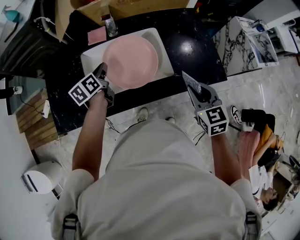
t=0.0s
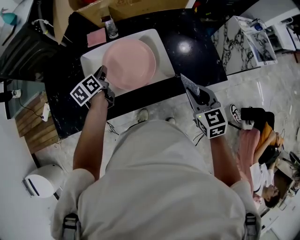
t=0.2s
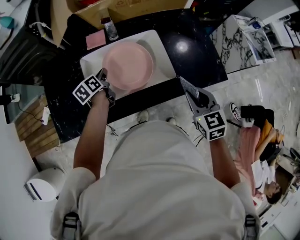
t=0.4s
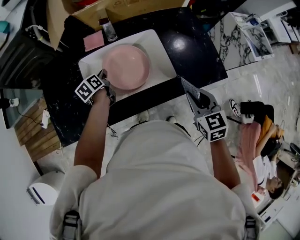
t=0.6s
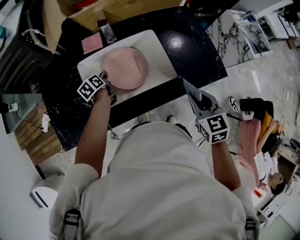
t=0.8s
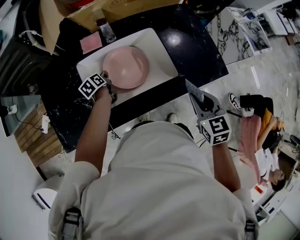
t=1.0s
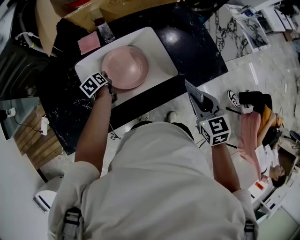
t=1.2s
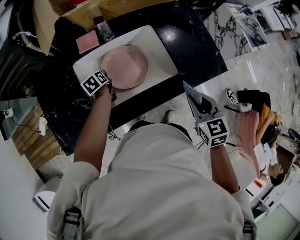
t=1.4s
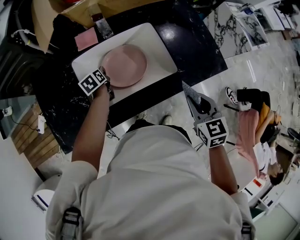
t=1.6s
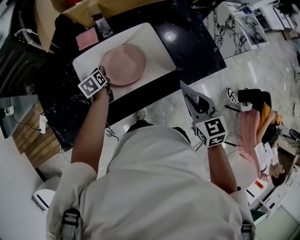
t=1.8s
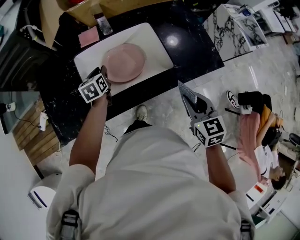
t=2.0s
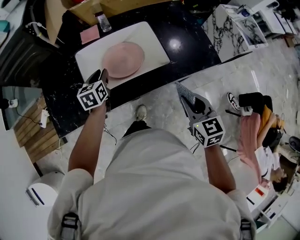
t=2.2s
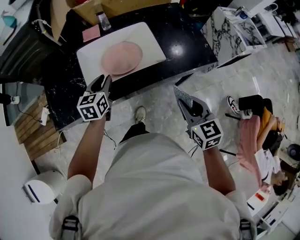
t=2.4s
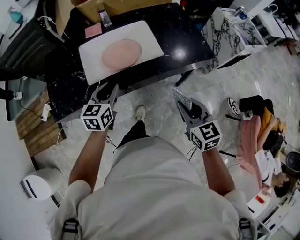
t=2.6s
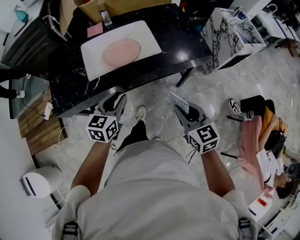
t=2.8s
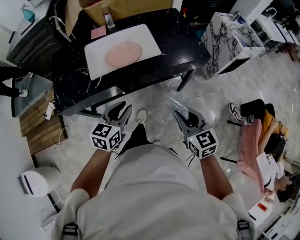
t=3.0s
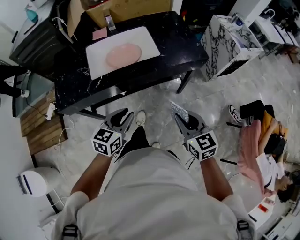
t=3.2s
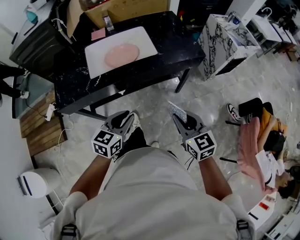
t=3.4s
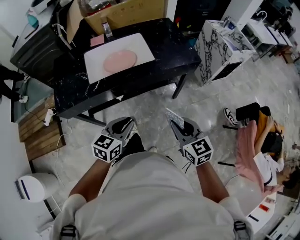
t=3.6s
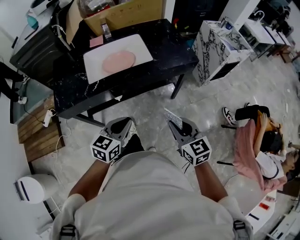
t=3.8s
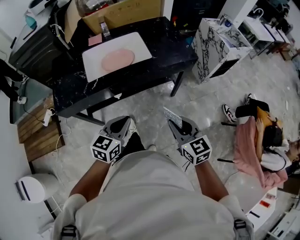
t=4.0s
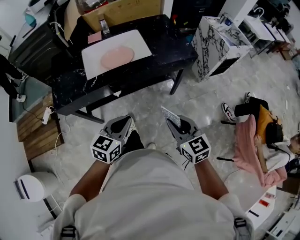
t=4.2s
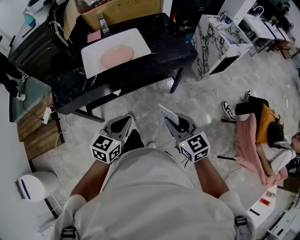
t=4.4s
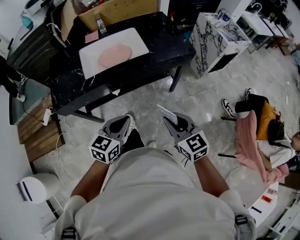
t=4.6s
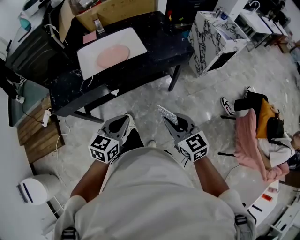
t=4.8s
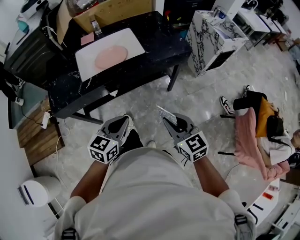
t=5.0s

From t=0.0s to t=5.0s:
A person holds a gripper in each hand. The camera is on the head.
From t=0.0s to t=1.6s: The left gripper heads downward, covering roughly 15 cm, and rotates some 20 degrees; the right gripper moves about 5 cm.
From t=1.6s to t=3.4s: The right gripper heads backward, covering roughly 30 cm, and changes its angle by approximately 20 degrees; the left gripper heads backward, to the right and upward, covering roughly 60 cm, and swivels approximately 50 degrees.
From t=3.4s to t=5.0s: The left gripper closes.

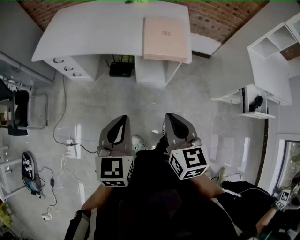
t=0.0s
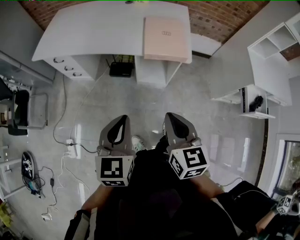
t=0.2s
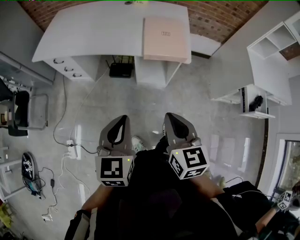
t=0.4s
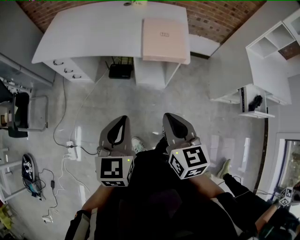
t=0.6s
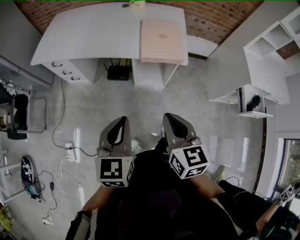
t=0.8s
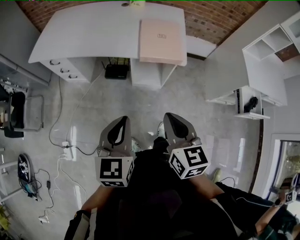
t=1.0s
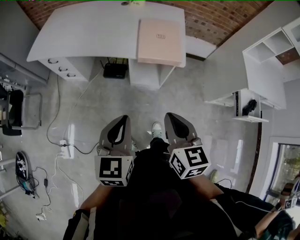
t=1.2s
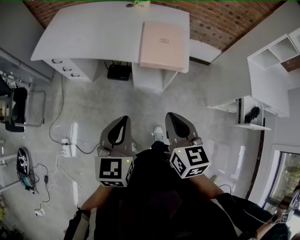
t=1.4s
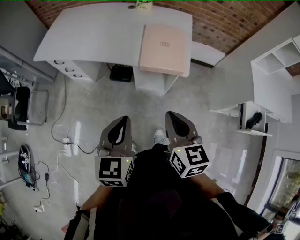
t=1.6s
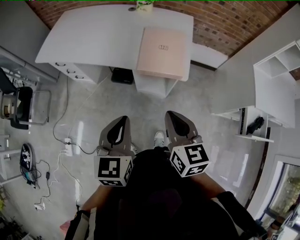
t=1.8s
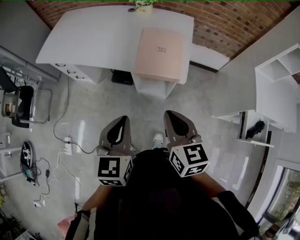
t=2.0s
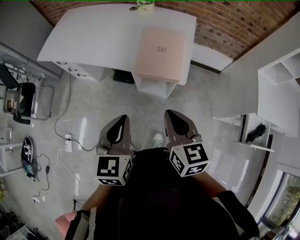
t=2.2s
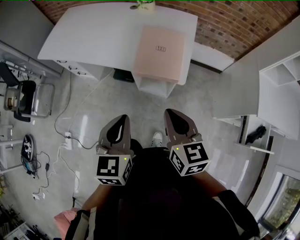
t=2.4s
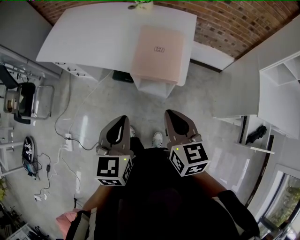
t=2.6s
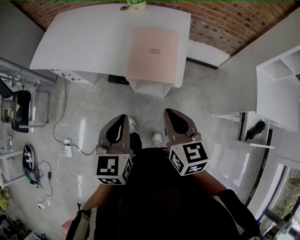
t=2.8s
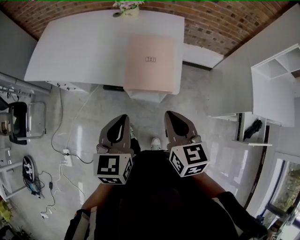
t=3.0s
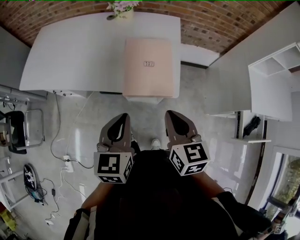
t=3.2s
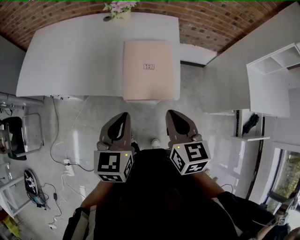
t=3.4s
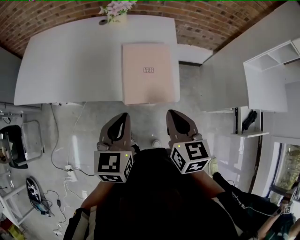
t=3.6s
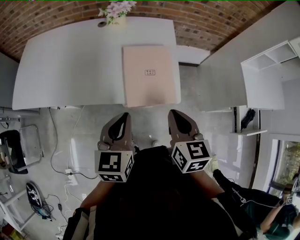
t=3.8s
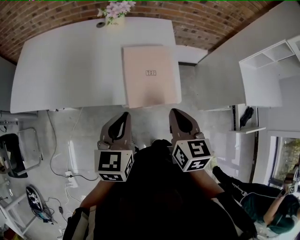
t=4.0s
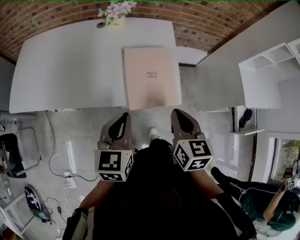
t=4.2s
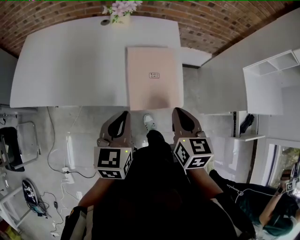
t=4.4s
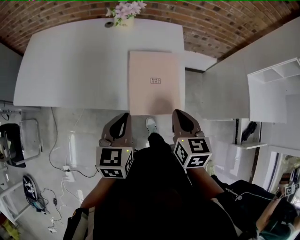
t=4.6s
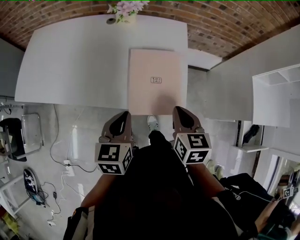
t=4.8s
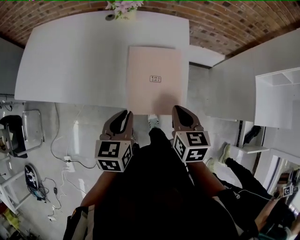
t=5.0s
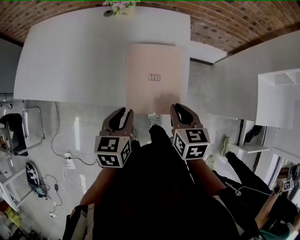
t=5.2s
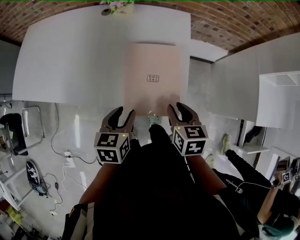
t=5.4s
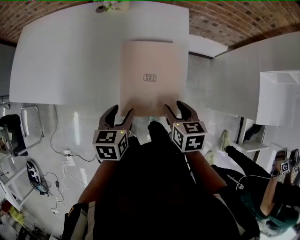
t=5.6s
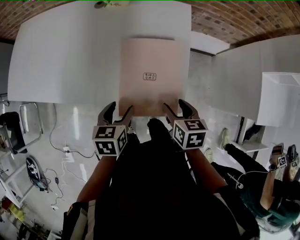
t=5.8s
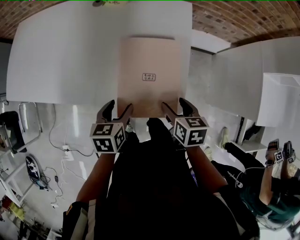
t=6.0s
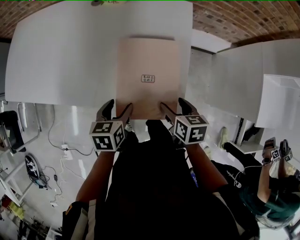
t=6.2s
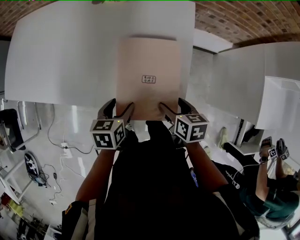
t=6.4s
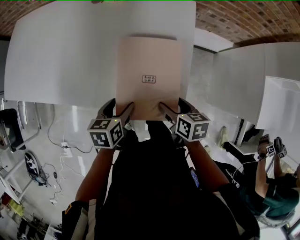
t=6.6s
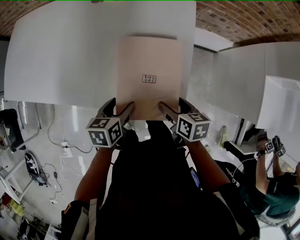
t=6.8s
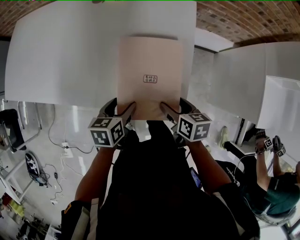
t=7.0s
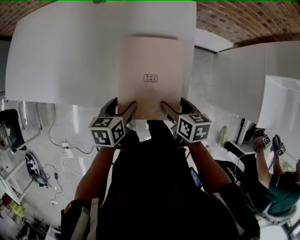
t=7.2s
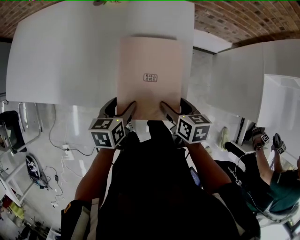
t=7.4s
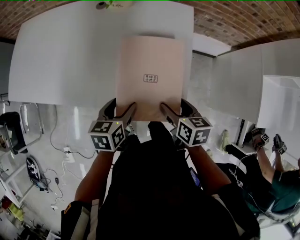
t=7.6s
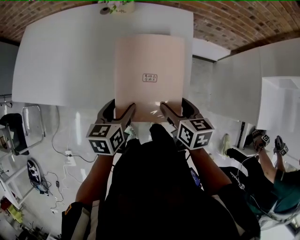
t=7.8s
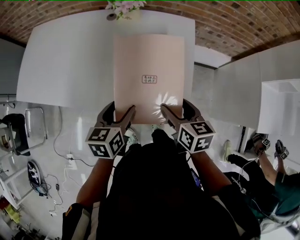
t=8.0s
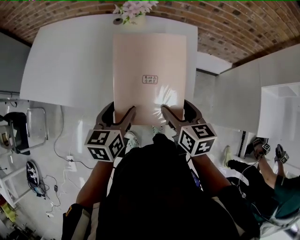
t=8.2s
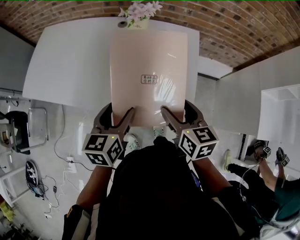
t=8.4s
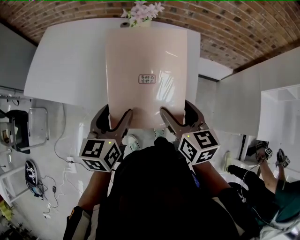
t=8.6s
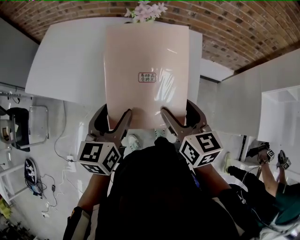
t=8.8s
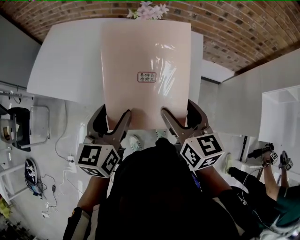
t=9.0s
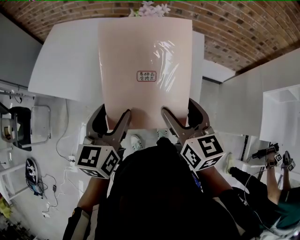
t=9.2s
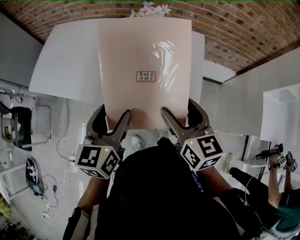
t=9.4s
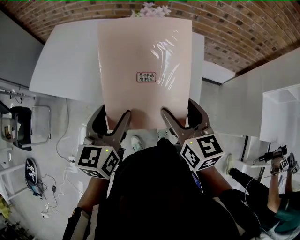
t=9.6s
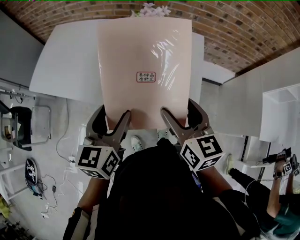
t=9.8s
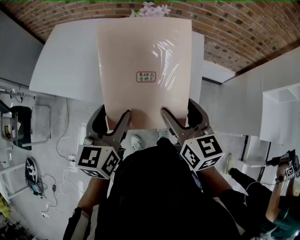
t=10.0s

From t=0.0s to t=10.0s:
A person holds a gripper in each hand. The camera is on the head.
From t=0.0s to t=1.4s: The left gripper changes place by approximately 5 cm; the right gripper changes place by roughly 5 cm.
From t=1.4s to t=2.8s: Both grippers move forward and to the right, some 15 cm.
From t=2.8s to t=4.2s: The right gripper shifts approximately 10 cm forward, and swivels about 20 degrees, while the left gripper heads forward and to the left, covering some 15 cm.
From t=4.2s to t=5.8s: The grippers both shift downward and forward by some 20 cm. The left gripper rotates about 30 degrees, and opens its fingers. The right gripper swivels some 30 degrees, and opens its fingers.
From t=5.8s to t=7.2s: The grippers stay close to where they were, moving slightly.
From t=7.2s to t=8.6s: Both grippers travel together upward and to the left, approximately 20 cm. The right gripper changes its angle by about 30 degrees. The left gripper changes its angle by about 30 degrees.
From t=8.6s to t=10.0s: The grippers both shift upward by roughly 5 cm.

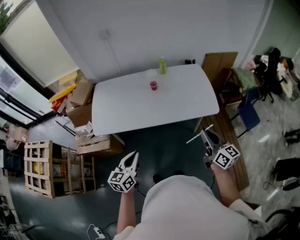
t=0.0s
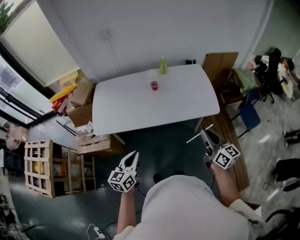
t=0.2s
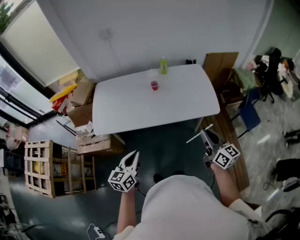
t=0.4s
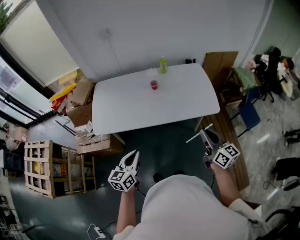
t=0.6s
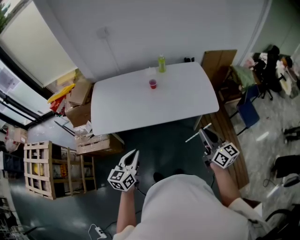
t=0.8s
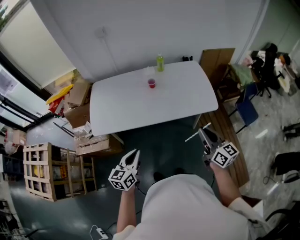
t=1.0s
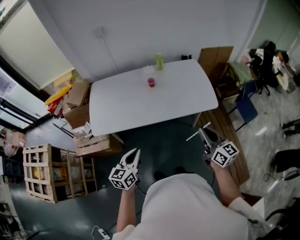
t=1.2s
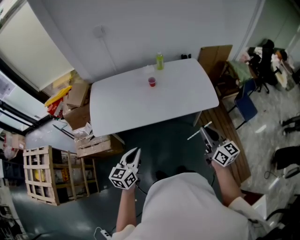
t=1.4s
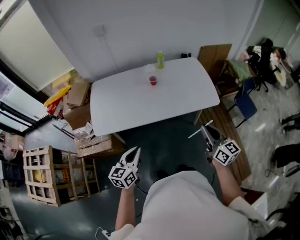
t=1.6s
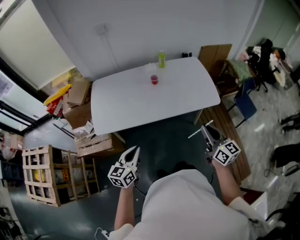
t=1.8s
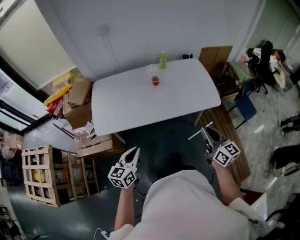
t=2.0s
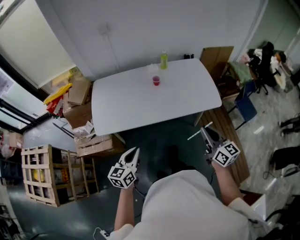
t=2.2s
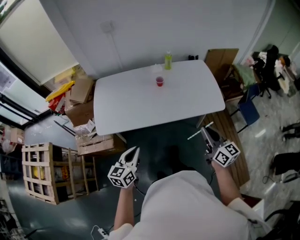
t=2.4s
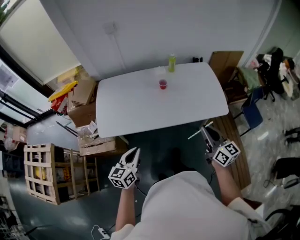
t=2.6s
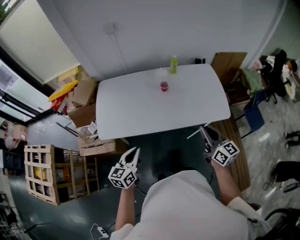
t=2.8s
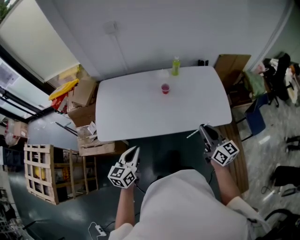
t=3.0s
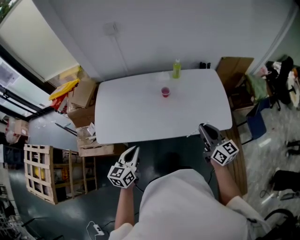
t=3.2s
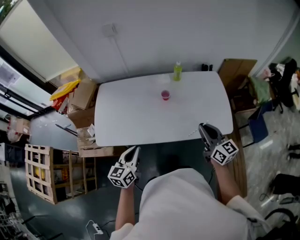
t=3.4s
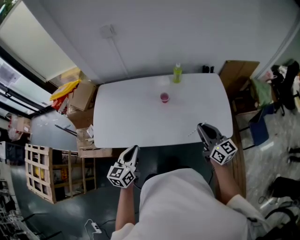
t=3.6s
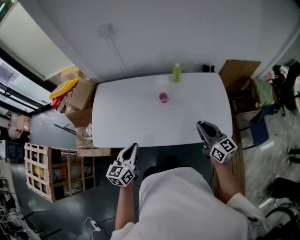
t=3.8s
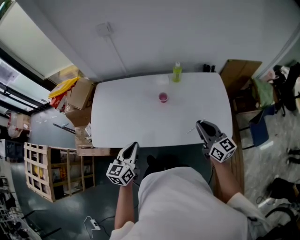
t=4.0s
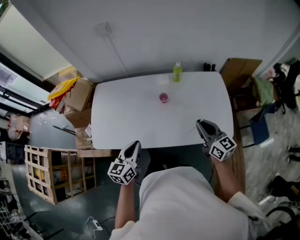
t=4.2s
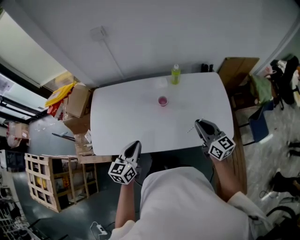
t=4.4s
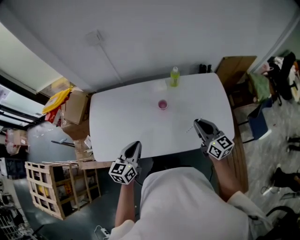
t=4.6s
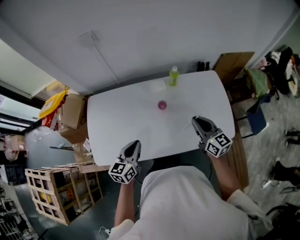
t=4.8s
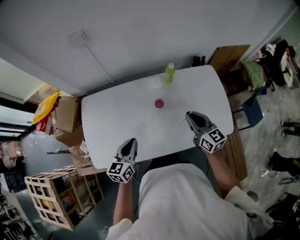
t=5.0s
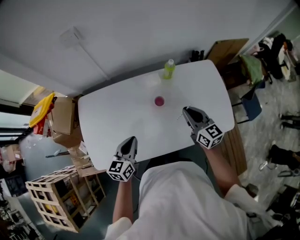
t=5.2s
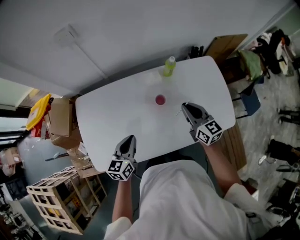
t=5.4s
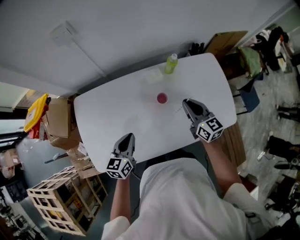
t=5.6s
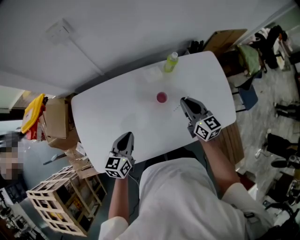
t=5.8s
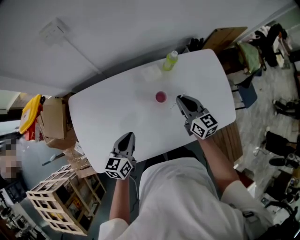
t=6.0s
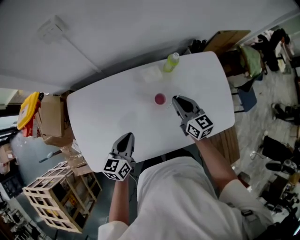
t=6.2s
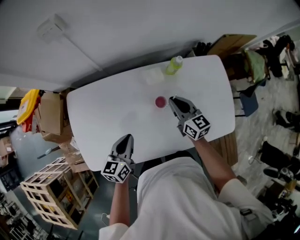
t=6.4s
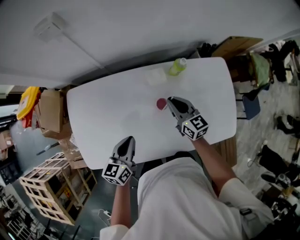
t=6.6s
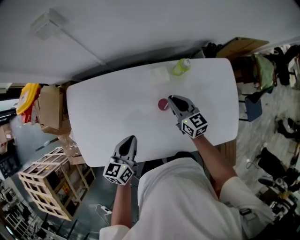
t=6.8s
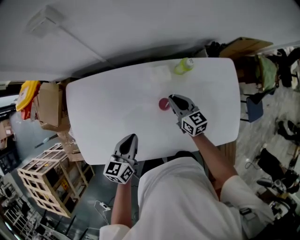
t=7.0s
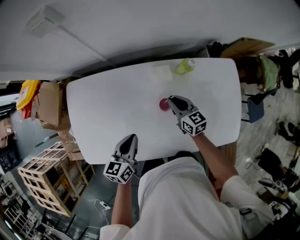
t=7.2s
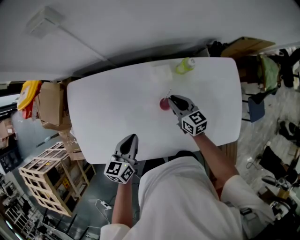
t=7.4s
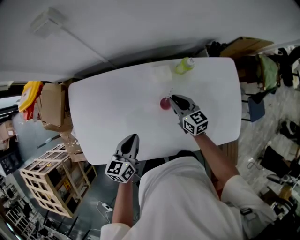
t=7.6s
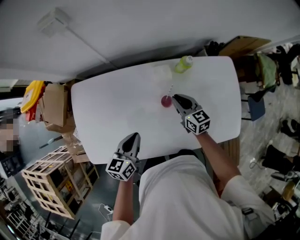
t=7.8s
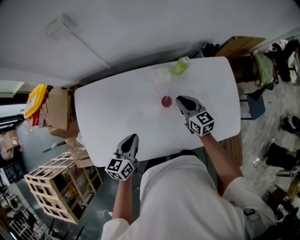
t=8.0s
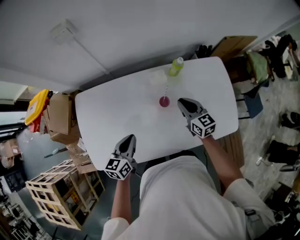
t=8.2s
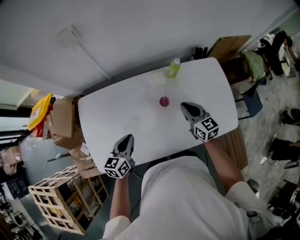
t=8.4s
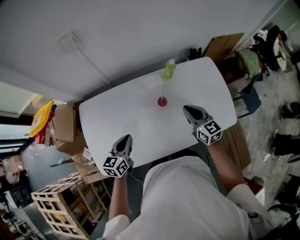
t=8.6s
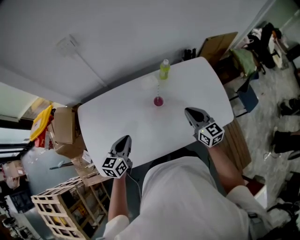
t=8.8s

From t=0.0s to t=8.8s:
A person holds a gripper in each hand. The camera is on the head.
From t=0.0s to t=1.4s: The grippers move only a little.
From t=1.4s to t=3.0s: The grippers both shift forward by about 10 cm.
From t=3.0s to t=4.4s: The right gripper heads forward, covering roughly 15 cm. The left gripper travels forward and to the right by some 15 cm.
From t=4.4s to t=5.8s: The right gripper heads forward, to the left and downward, covering some 20 cm; the left gripper moves forward, downward and to the left, approximately 20 cm.
From t=5.8s to t=7.4s: The right gripper is displaced downward and forward by about 15 cm, and rotates some 20 degrees. The left gripper changes place by approximately 5 cm.
From t=7.4s to t=8.8s: The left gripper travels to the left by roughly 5 cm, while the right gripper heads upward, backward and to the right, covering some 25 cm, and rotates approximately 20 degrees.
